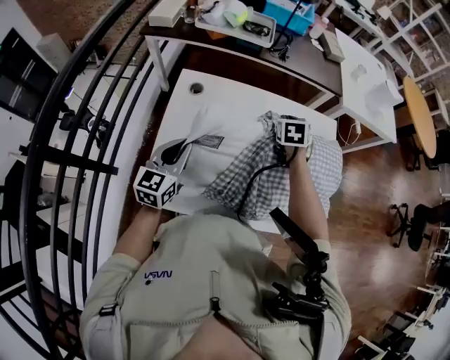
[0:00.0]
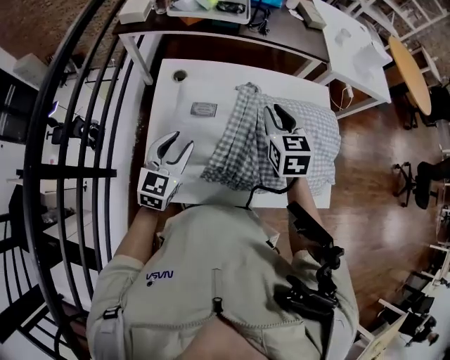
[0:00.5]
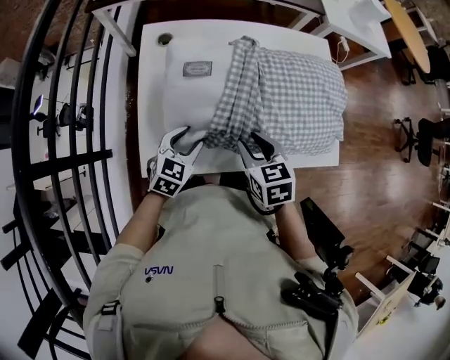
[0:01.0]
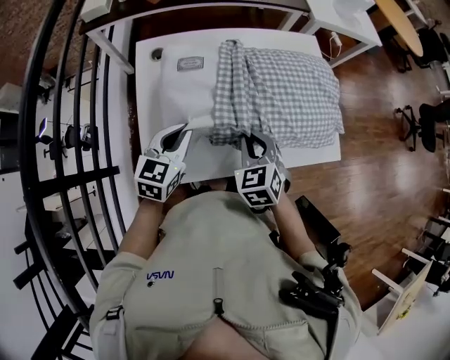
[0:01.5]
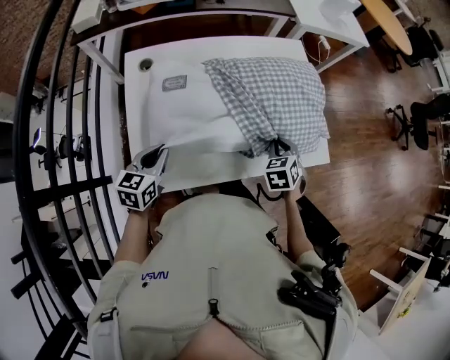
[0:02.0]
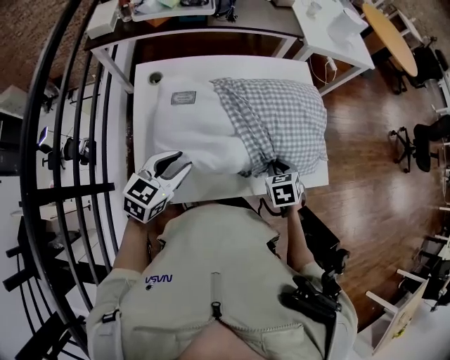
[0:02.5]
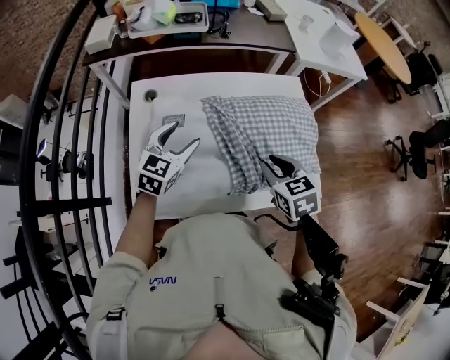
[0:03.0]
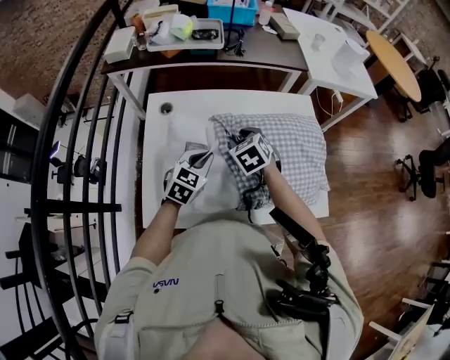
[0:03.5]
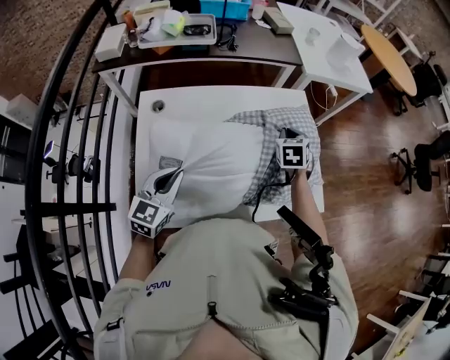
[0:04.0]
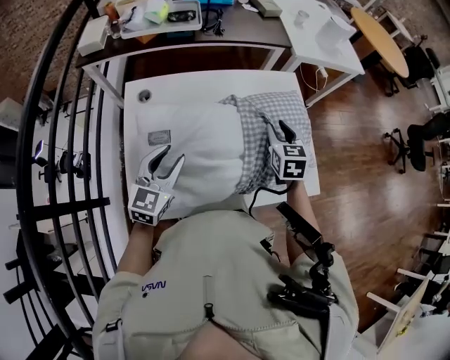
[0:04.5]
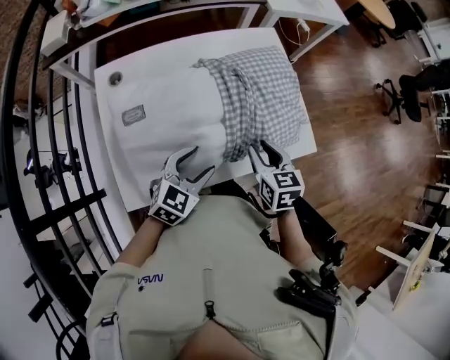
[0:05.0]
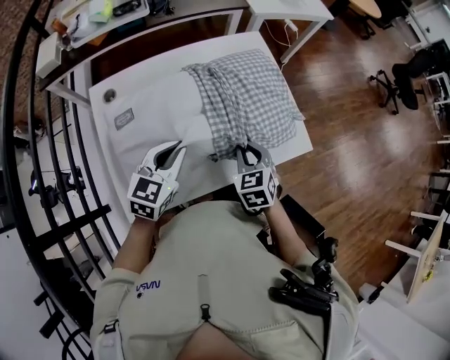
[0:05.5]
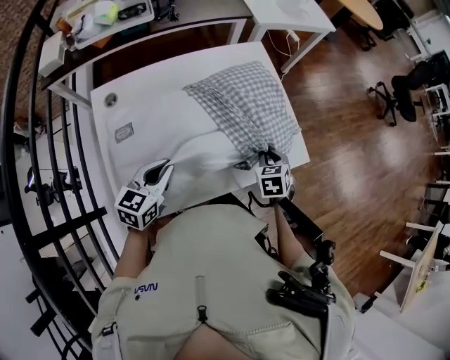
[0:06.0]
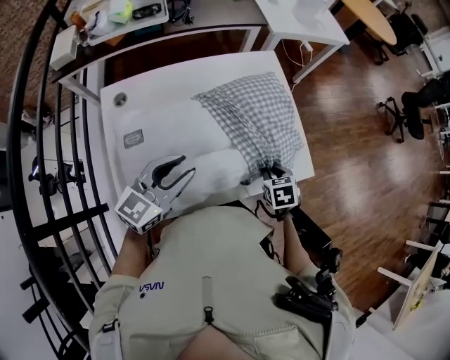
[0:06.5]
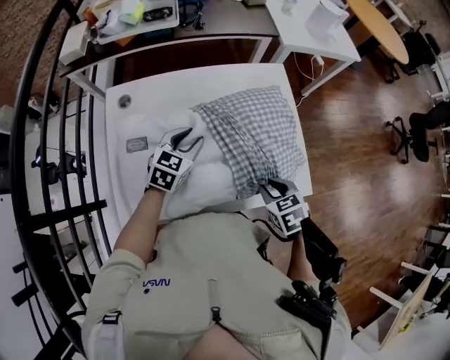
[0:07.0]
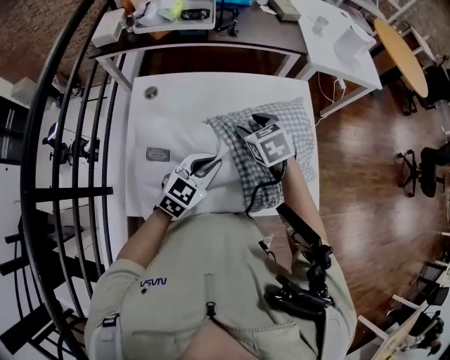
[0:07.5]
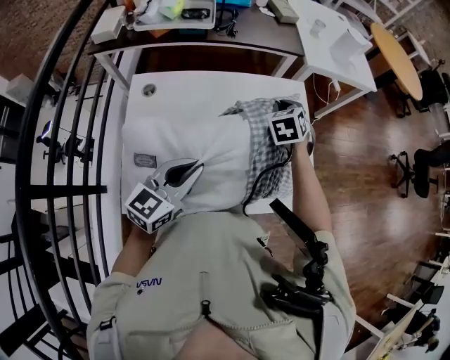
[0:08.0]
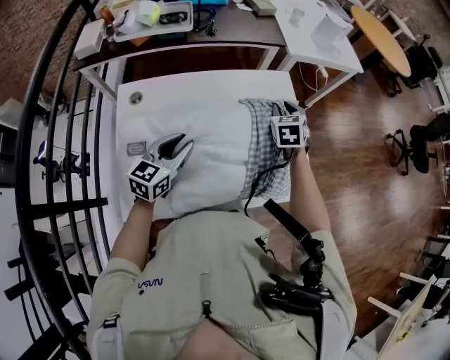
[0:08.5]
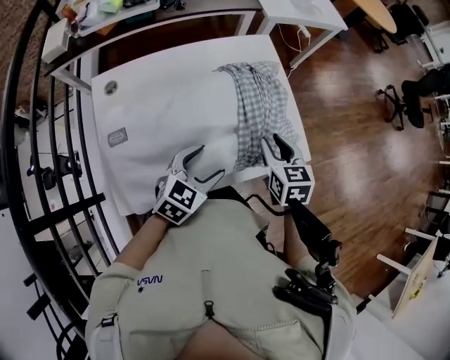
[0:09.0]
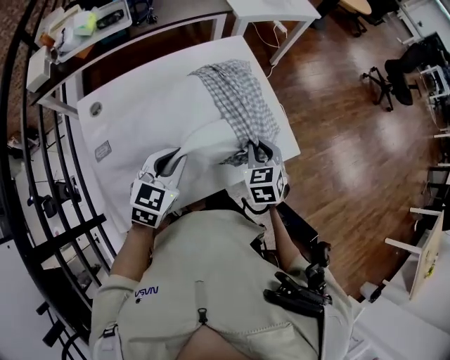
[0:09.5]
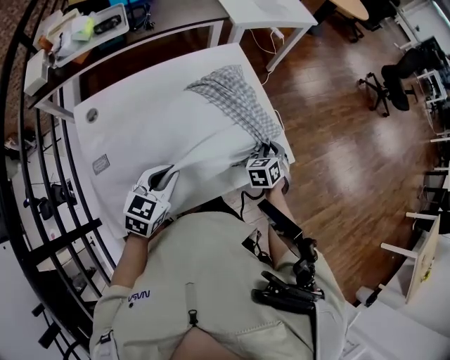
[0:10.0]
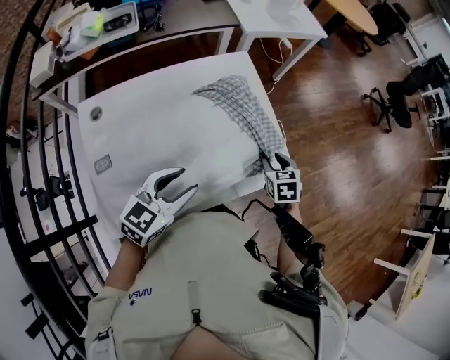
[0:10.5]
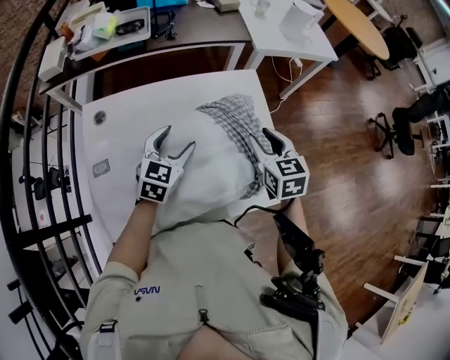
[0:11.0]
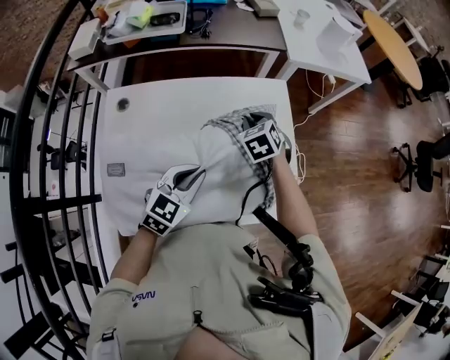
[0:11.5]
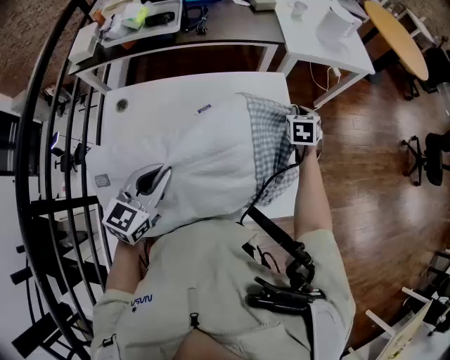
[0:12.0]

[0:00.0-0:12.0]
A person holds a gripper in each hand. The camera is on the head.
0:00.0 to 0:02.0: The right gripper shifts roughly 30 cm backward and to the right, and opens, then closes once more; the left gripper goes up and down, approximately 10 cm each way, reversing 2 times, rotates some 30 degrees, and opens and closes again.
0:02.0 to 0:04.0: The right gripper is displaced forward by about 20 cm, and opens and closes again, while the left gripper is displaced upward and forward by some 10 cm, turns by approximately 20 degrees, and opens, then closes once more.
0:04.0 to 0:06.0: The right gripper is displaced backward, to the right and downward by approximately 20 cm, and opens and closes again, while the left gripper heads to the right, covering about 5 cm, swivels some 20 degrees, and opens, then closes again.
0:06.0 to 0:08.0: The left gripper goes up and down, some 10 cm each way, reversing 2 times, and opens, then closes again, while the right gripper moves some 30 cm, changes its angle by approximately 20 degrees, and opens, then closes once more.
0:08.0 to 0:10.0: The right gripper travels to the right, downward and backward by some 30 cm, turns by approximately 30 degrees, and opens and closes again; the left gripper swings left and right, approximately 15 cm each way, with 2 reversals, changes its angle by approximately 20 degrees, and opens, then closes once more.
0:10.0 to 0:12.0: The right gripper shifts by approximately 30 cm, and opens, then closes again. Meanwhile the left gripper moves up and down over some 5 cm, changing direction 2 times, swivels approximately 20 degrees, and opens, then closes again.

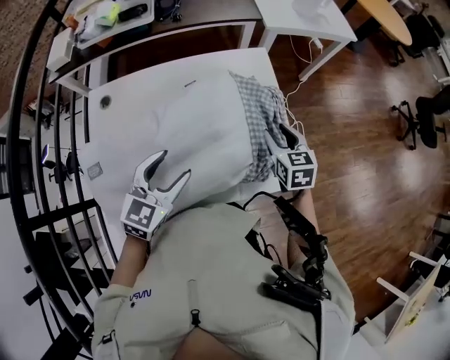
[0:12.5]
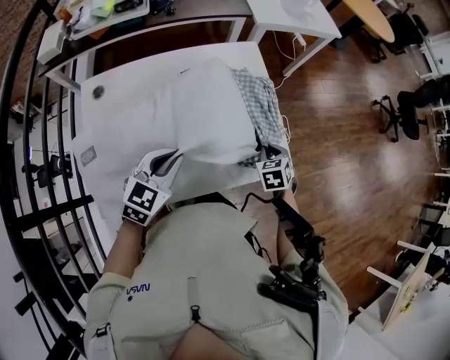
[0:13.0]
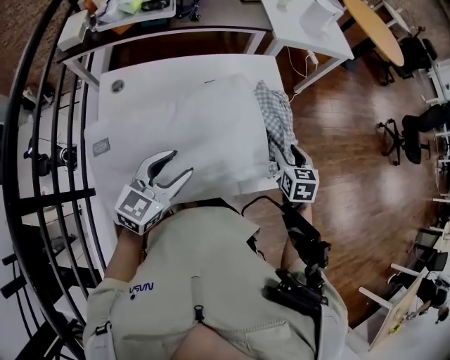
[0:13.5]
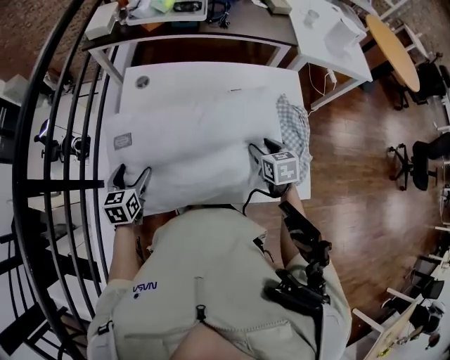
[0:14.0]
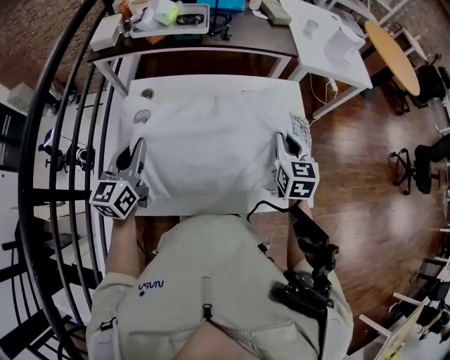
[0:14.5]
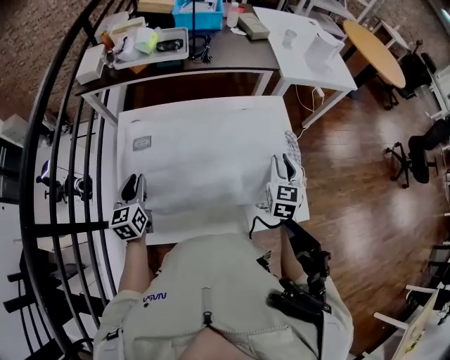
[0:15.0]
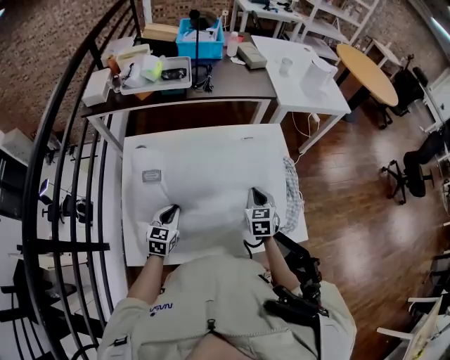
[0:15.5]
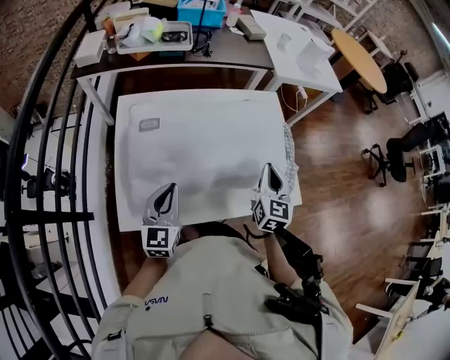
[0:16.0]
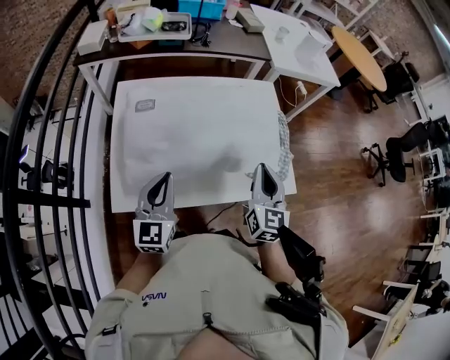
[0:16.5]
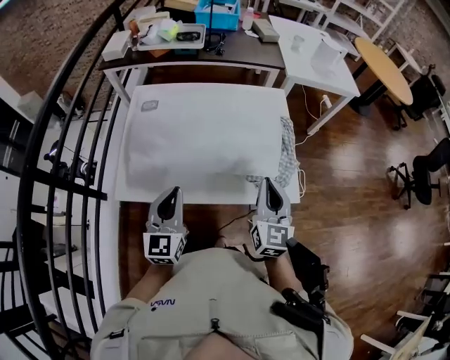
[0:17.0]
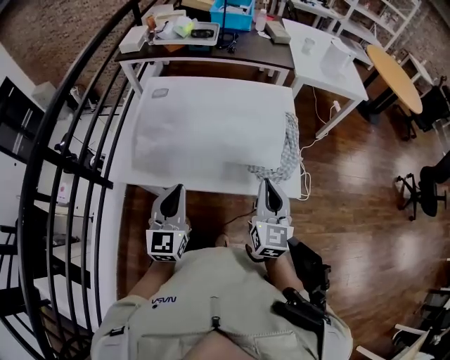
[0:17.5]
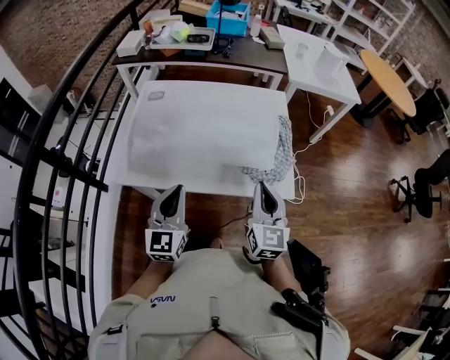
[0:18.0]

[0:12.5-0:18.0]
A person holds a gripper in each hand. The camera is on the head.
0:12.5 to 0:14.5: The right gripper goes up and down, roughly 20 cm each way, reversing 3 times, and closes up; the left gripper goes downward and returns, some 10 cm each way, changes its angle by roughly 40 degrees, and closes.
0:14.5 to 0:16.0: The right gripper shifts approximately 10 cm backward, moves roughly 10 cm downward and comes back, and opens, then closes once more. The left gripper shifts some 10 cm to the right and backward, and reaches about 20 cm downward, then returns.
0:16.0 to 0:18.0: The grippers both shift backward and to the right by about 20 cm. The right gripper changes its angle by roughly 20 degrees.

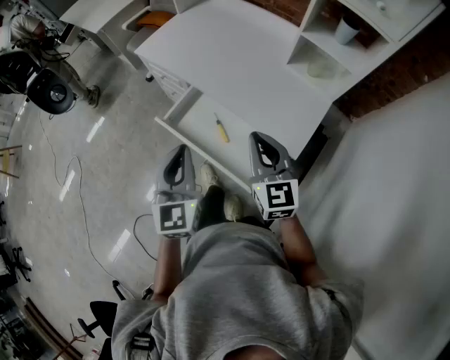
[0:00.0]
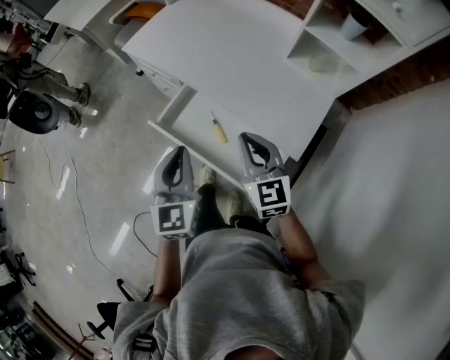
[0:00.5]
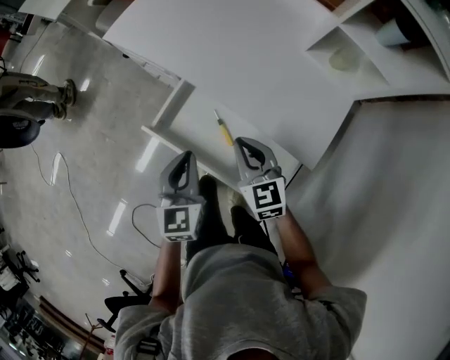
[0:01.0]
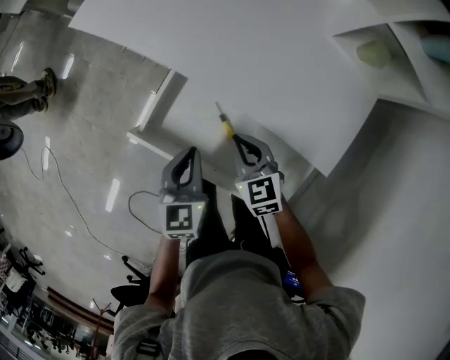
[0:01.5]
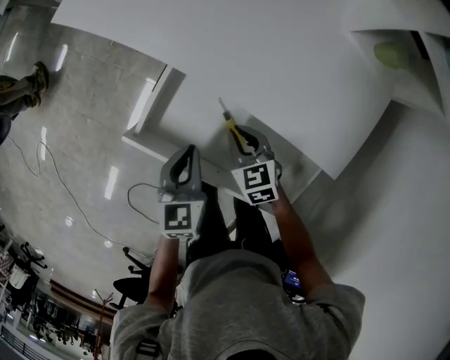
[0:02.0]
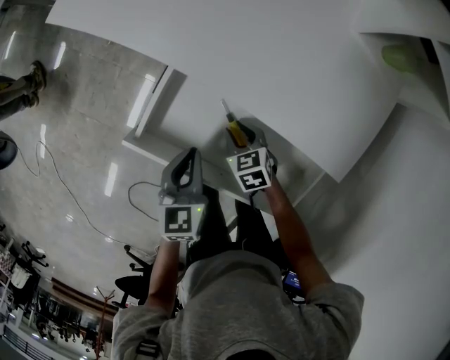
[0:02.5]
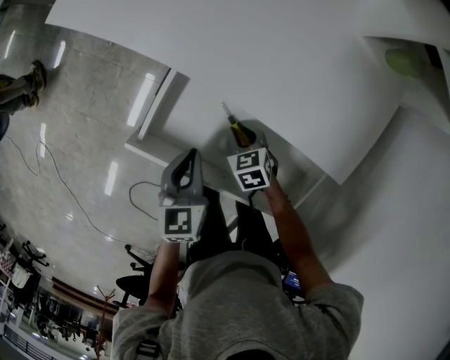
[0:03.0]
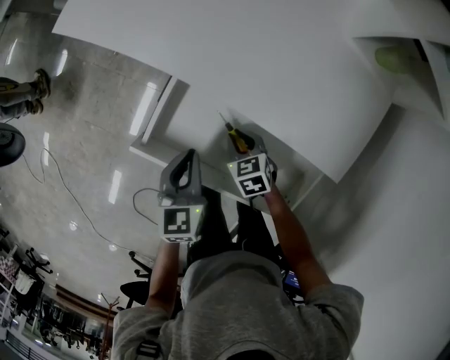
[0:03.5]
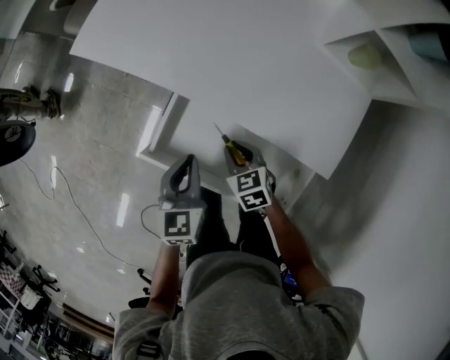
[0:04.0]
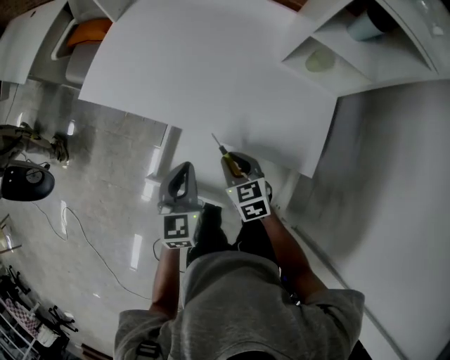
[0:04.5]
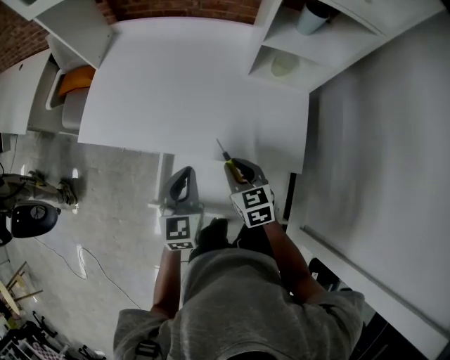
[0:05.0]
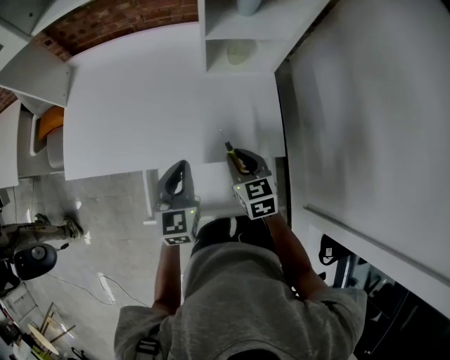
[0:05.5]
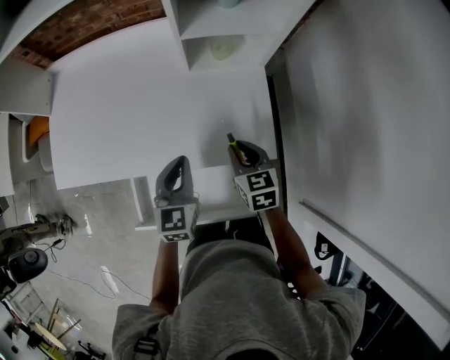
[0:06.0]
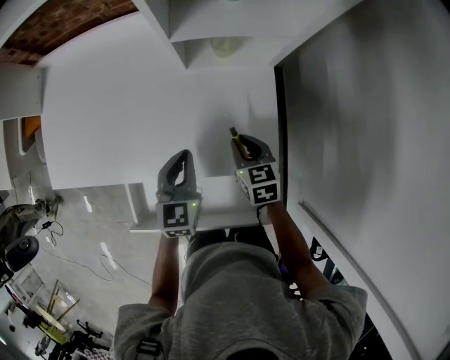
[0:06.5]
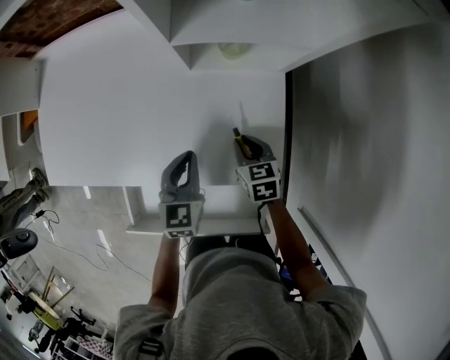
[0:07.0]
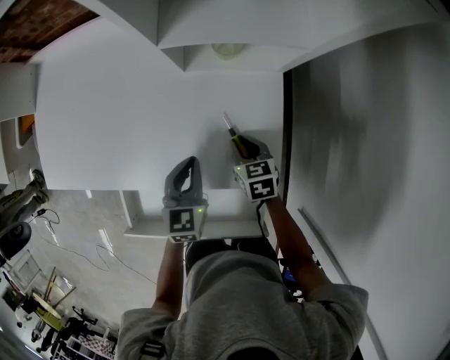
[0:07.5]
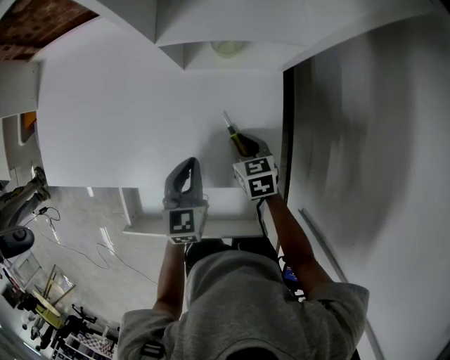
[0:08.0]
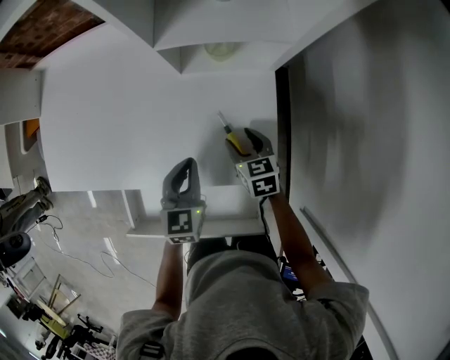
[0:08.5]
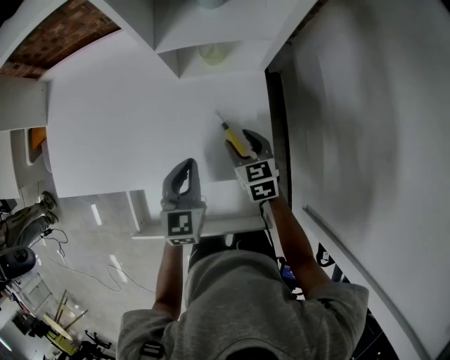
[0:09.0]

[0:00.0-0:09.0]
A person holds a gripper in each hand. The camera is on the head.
0:00.0 to 0:02.0: Both grippers move downward and forward, some 40 cm. The right gripper points its fingers approximately 40 degrees further downward. The left gripper turns by approximately 30 degrees.
0:02.0 to 0:04.5: The two grippers go some 15 cm upward.
0:04.5 to 0:07.0: The left gripper changes place by some 30 cm, and changes its angle by about 20 degrees, while the right gripper shifts by approximately 35 cm, and changes its angle by some 30 degrees.
0:07.0 to 0:09.0: Both grippers move upward, about 5 cm. The right gripper opens its fingers.
